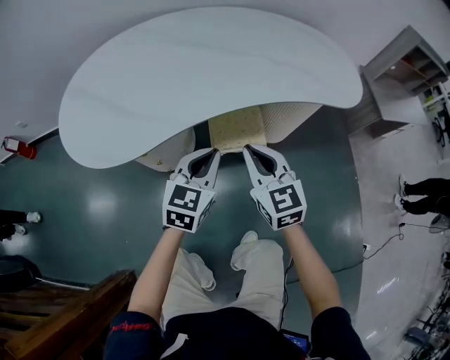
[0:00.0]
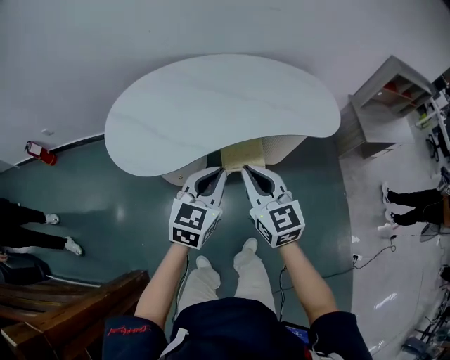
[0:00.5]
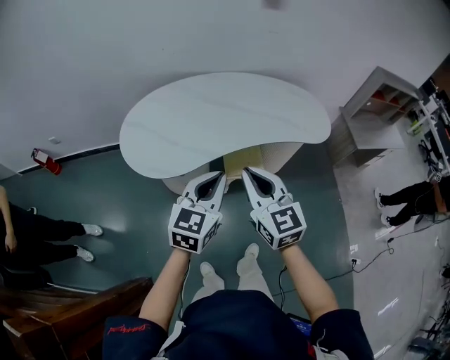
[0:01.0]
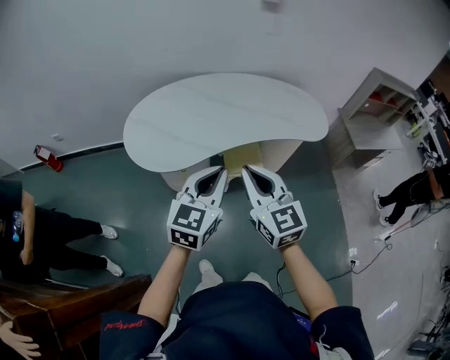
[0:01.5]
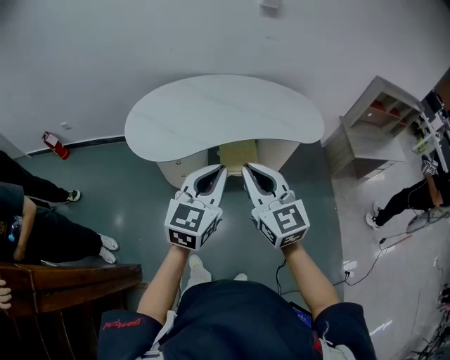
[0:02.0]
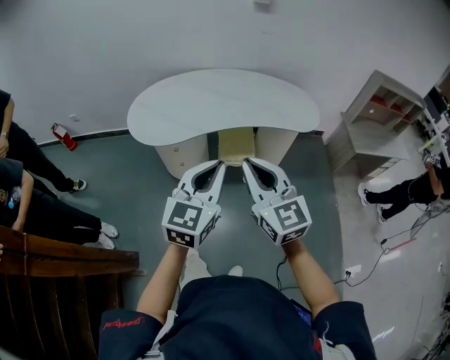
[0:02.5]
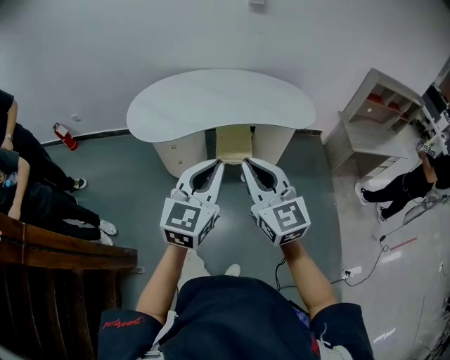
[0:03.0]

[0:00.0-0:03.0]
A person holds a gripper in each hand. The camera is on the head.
0:00.0 to 0:01.5: The grippers both shift upward and backward by about 40 cm.
0:01.5 to 0:03.0: Both grippers move backward and to the right, about 25 cm.

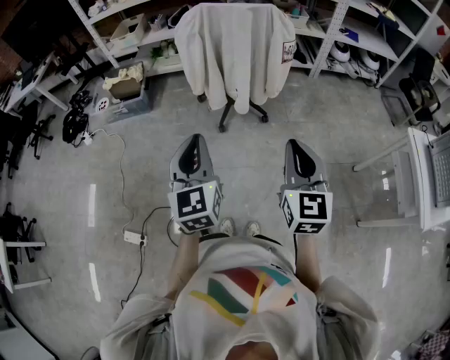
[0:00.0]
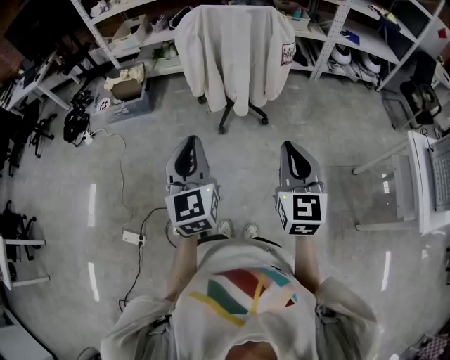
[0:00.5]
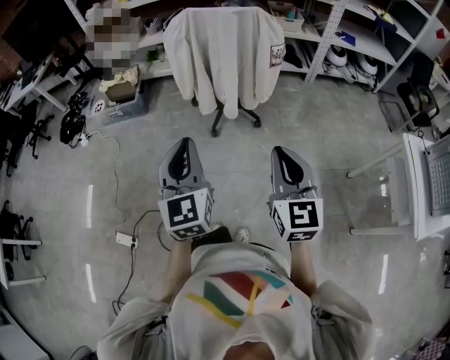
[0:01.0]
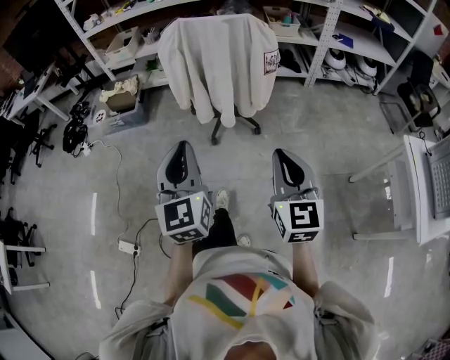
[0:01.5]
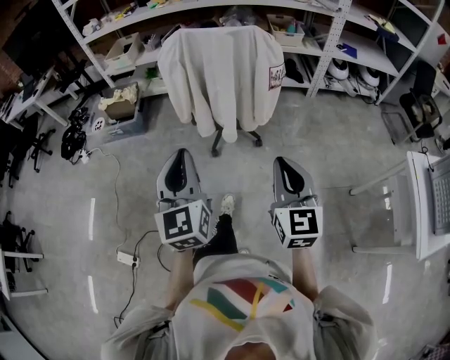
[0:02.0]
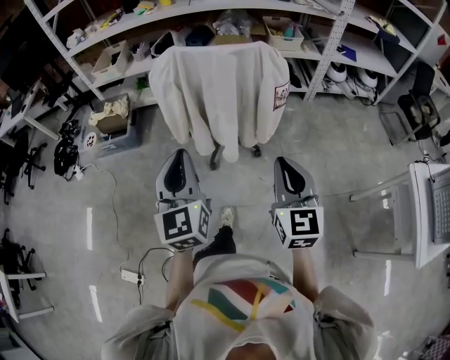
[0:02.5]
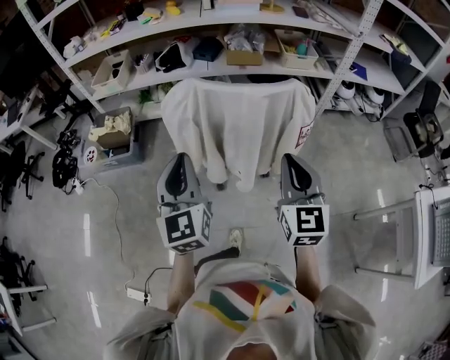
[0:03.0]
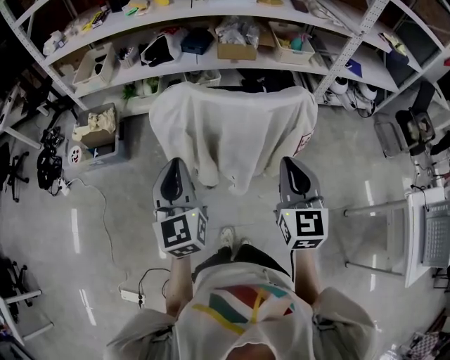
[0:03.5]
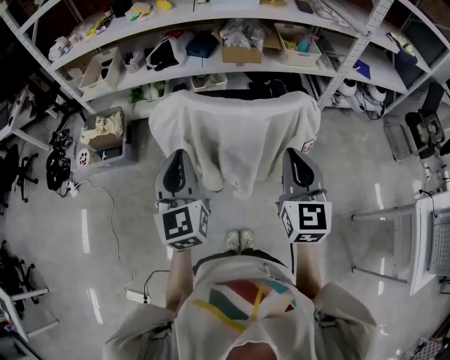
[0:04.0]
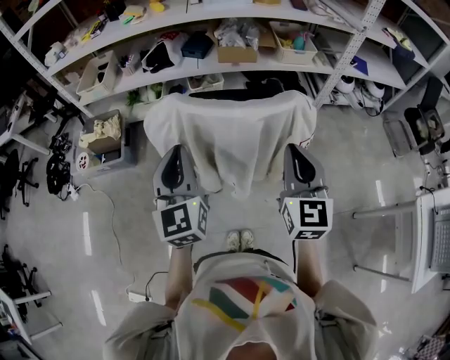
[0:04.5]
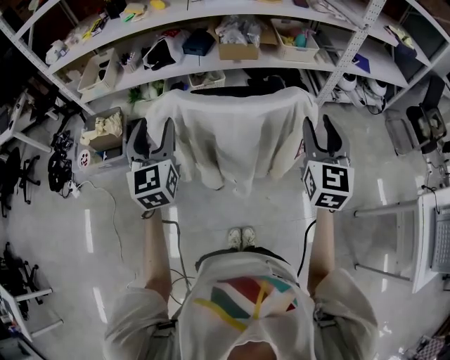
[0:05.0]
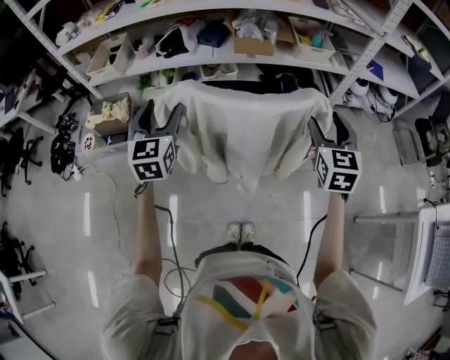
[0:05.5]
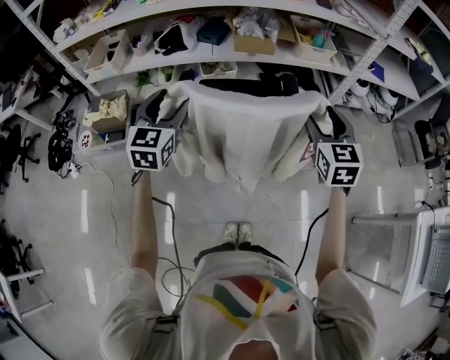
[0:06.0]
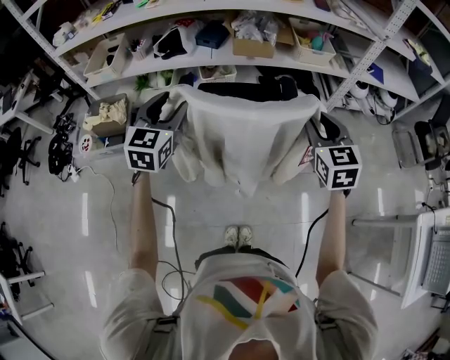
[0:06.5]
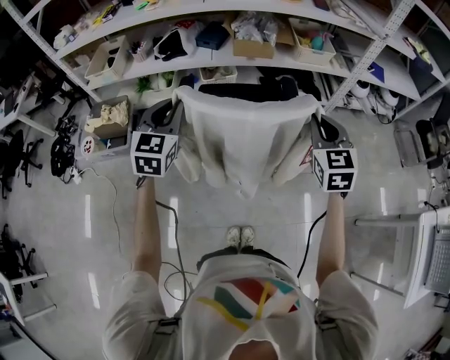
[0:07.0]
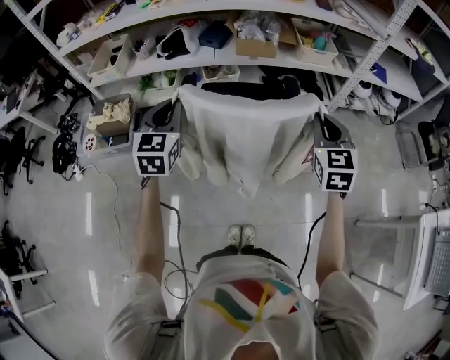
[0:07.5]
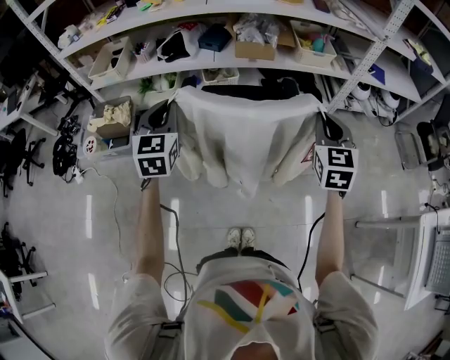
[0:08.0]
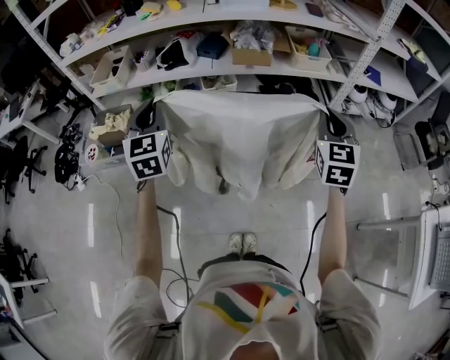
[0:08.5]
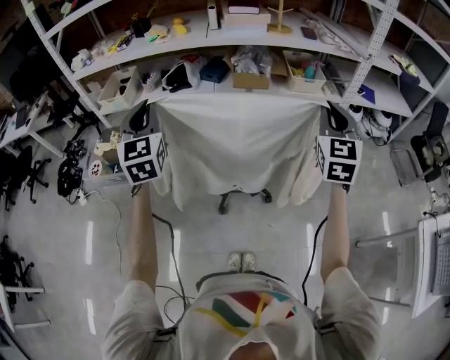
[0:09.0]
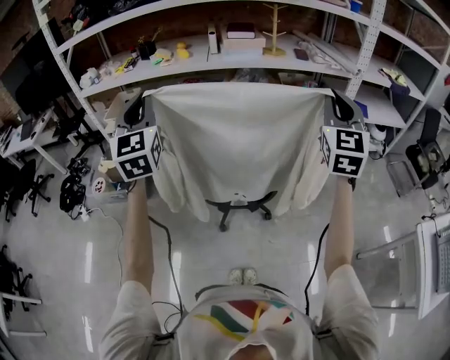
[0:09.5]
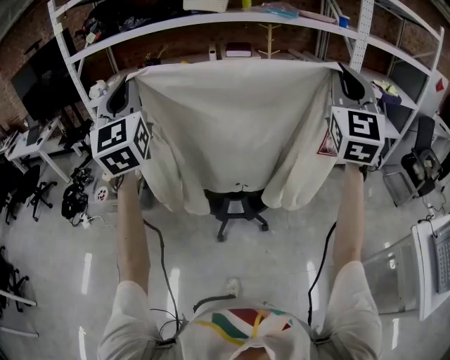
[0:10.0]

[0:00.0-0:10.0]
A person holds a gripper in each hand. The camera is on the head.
0:00.0 to 0:02.0: Both grippers travel together forward and to the right, roughly 10 cm.
0:02.0 to 0:04.0: The two grippers go about 35 cm forward.
0:04.0 to 0:06.0: The right gripper is displaced forward and to the right by approximately 15 cm, and opens. Meanwhile the left gripper travels forward by some 15 cm, changes its angle by about 20 degrees, and opens its fingers.
0:06.0 to 0:08.0: The right gripper closes, while the left gripper closes up.
0:08.0 to 0:10.0: The right gripper shifts roughly 35 cm upward, and tilts its fingers some 40 degrees upward. The left gripper heads upward and backward, covering roughly 40 cm, and tips its fingers upward by approximately 40 degrees.

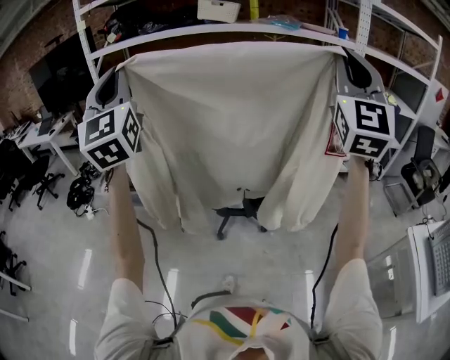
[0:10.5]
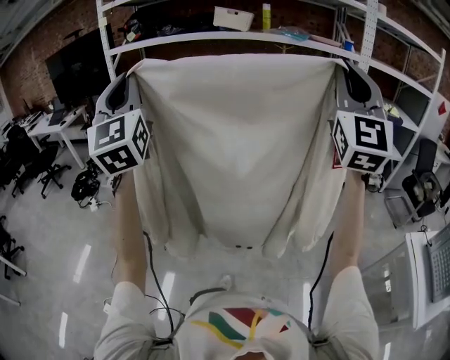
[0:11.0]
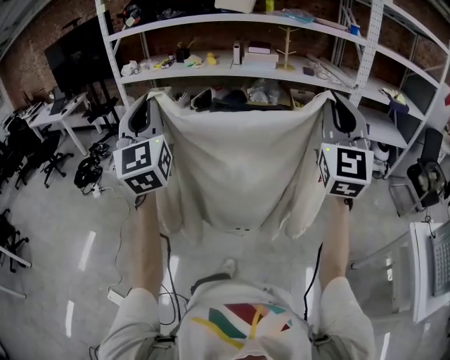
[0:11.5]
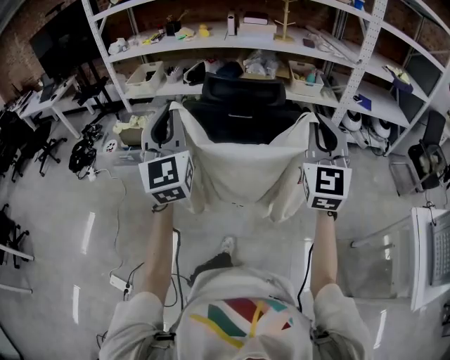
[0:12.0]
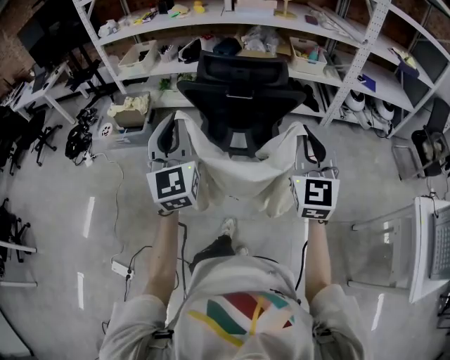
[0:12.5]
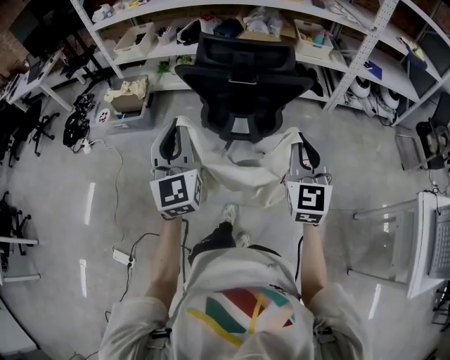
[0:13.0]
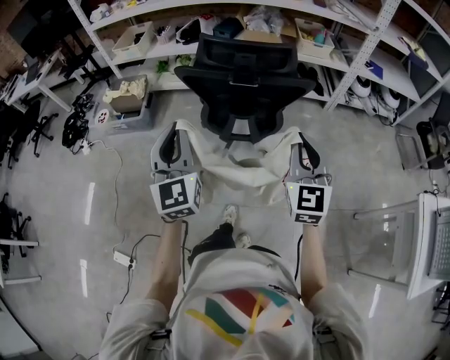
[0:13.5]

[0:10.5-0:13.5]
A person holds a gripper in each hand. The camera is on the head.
0:10.5 to 0:12.0: Both grippers travel together downward, about 25 cm. The right gripper rotates about 20 degrees.
0:12.0 to 0:13.5: Both grippers move downward, approximately 15 cm.

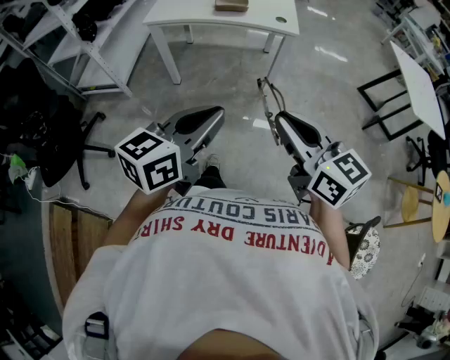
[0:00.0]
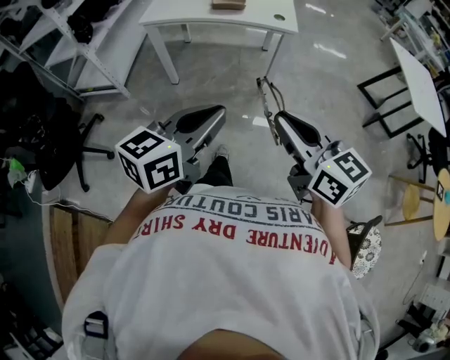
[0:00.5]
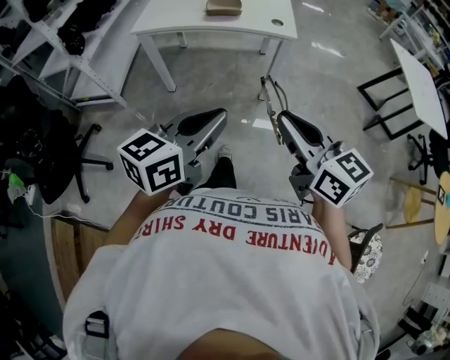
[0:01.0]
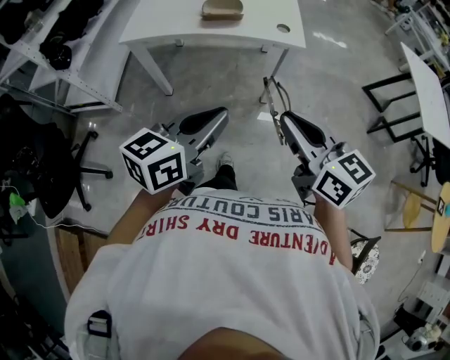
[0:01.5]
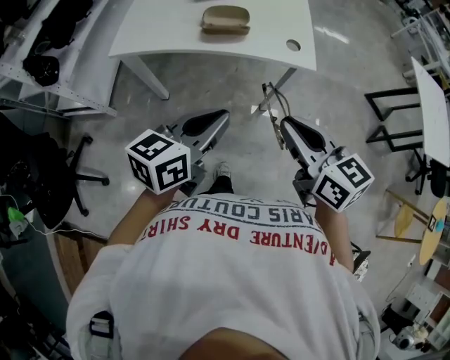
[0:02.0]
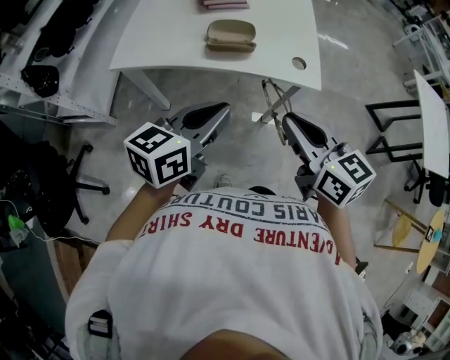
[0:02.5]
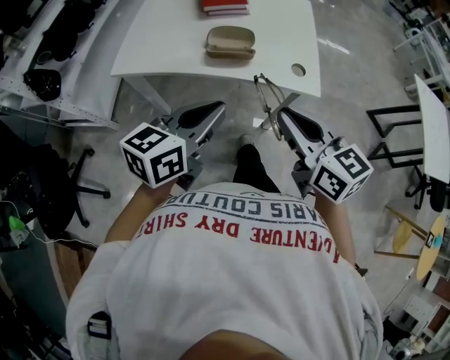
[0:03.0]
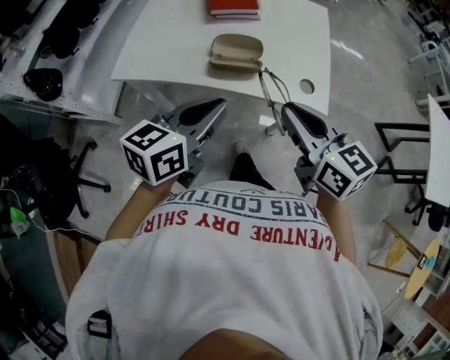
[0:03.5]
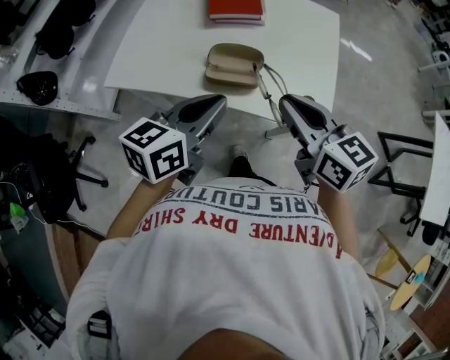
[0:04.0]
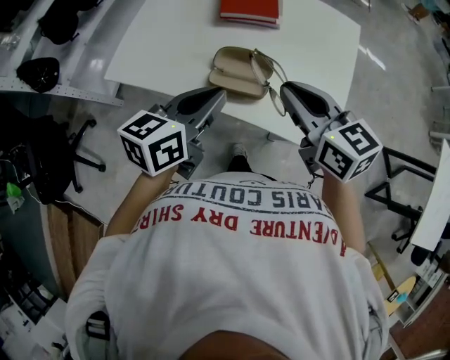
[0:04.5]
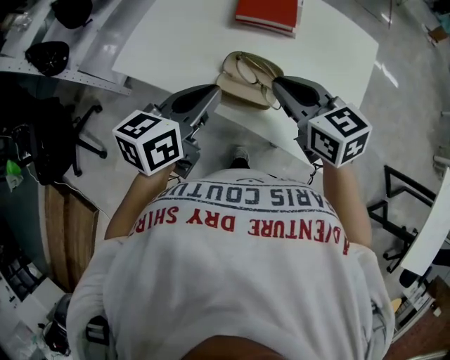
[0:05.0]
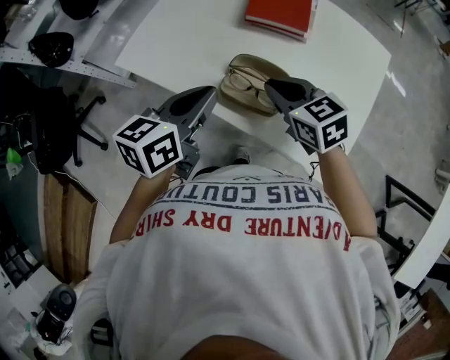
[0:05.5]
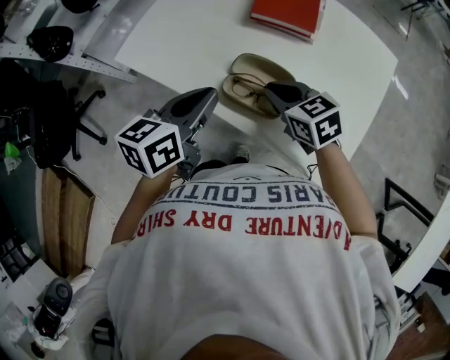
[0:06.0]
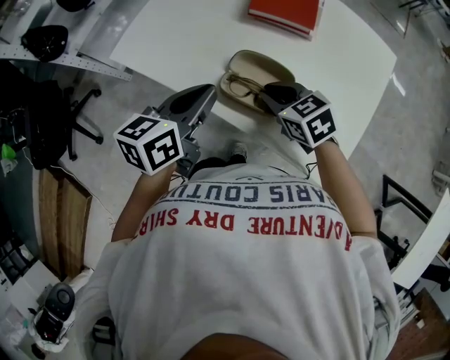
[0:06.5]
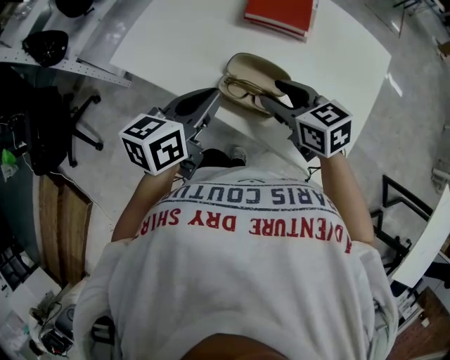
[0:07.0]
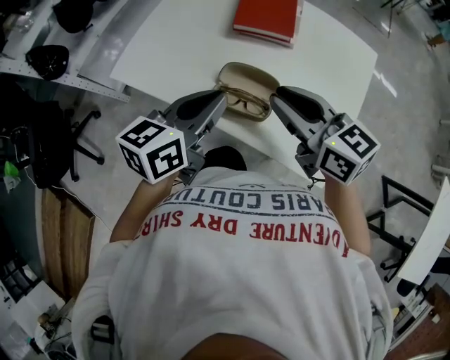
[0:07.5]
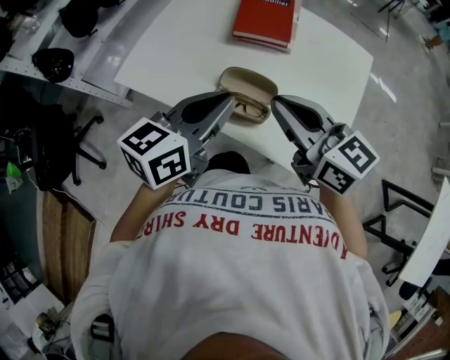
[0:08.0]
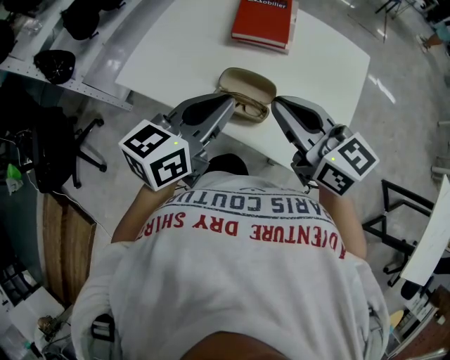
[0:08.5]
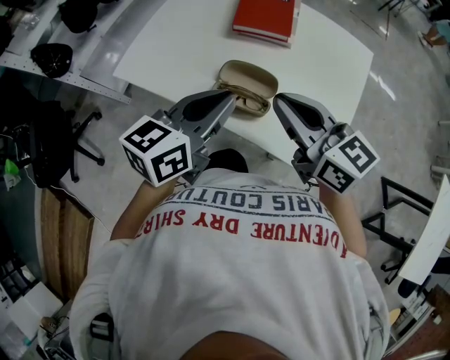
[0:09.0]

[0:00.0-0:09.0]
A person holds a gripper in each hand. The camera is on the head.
0:00.0 to 0:02.0: The grippers both shift forward by roughly 35 cm.
0:02.0 to 0:04.5: The two grippers go approximately 30 cm forward.
0:04.5 to 0:07.0: The left gripper heads downward, covering about 5 cm. The right gripper is displaced downward and forward by approximately 15 cm, changes its angle by about 20 degrees, and opens up.
0:07.0 to 0:09.0: The left gripper heads upward, covering about 10 cm. The right gripper moves upward, approximately 15 cm, turns by about 20 degrees, and closes.

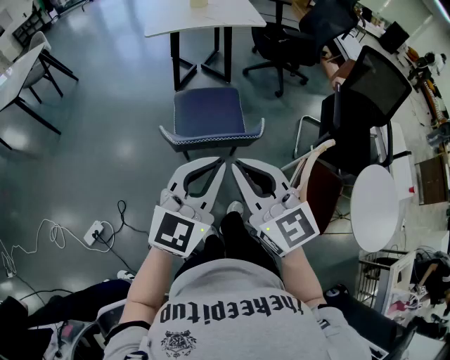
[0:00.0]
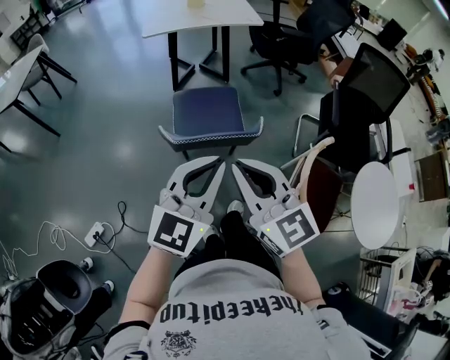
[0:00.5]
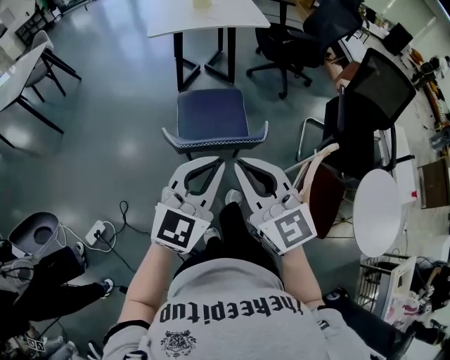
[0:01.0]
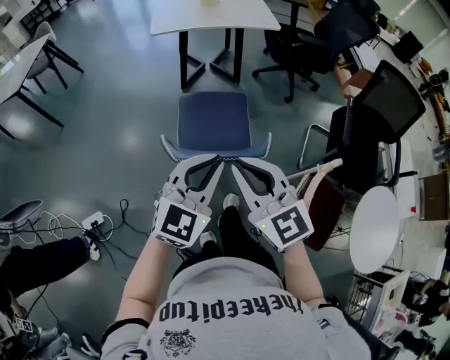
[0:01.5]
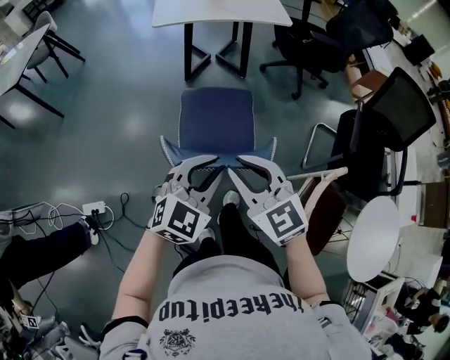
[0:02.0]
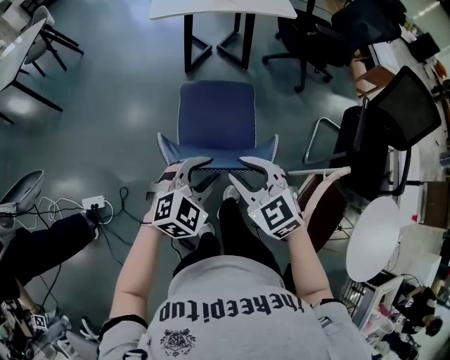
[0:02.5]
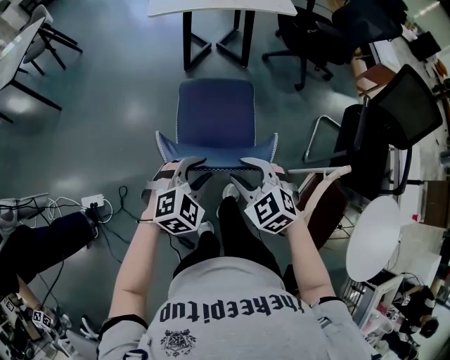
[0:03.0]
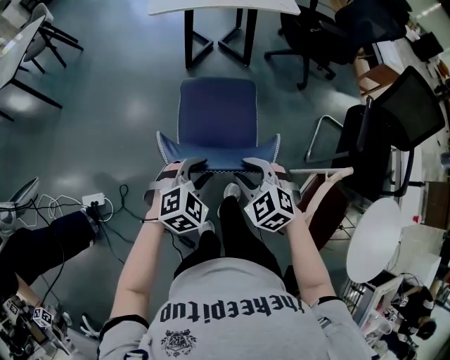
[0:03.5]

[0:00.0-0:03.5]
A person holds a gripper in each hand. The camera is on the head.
0:00.0 to 0:02.0: Both grippers travel together forward and downward, about 15 cm. The left gripper turns by some 20 degrees.
0:02.0 to 0:03.5: Both grippers travel together downward, some 15 cm. The left gripper rotates roughly 30 degrees, and opens its fingers; the right gripper rotates approximately 30 degrees.
